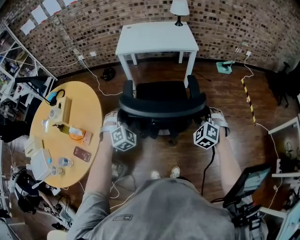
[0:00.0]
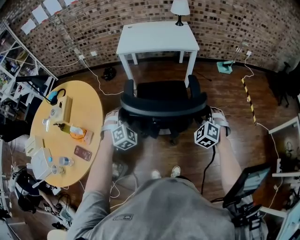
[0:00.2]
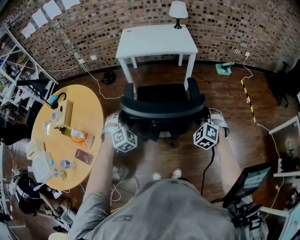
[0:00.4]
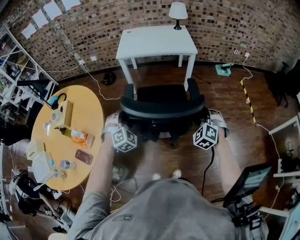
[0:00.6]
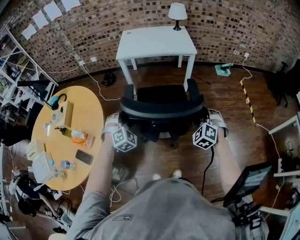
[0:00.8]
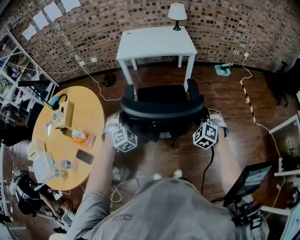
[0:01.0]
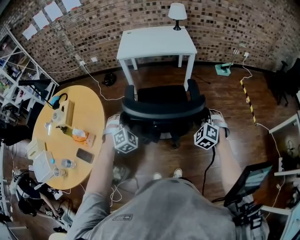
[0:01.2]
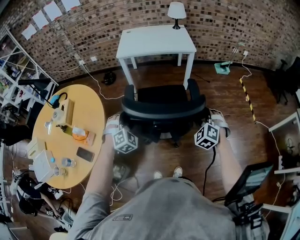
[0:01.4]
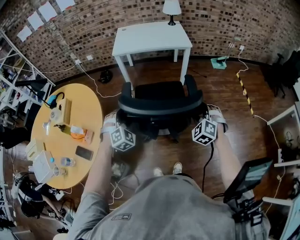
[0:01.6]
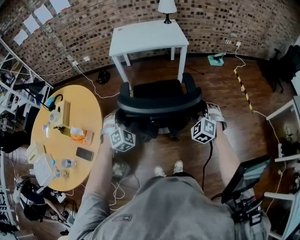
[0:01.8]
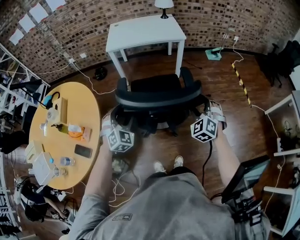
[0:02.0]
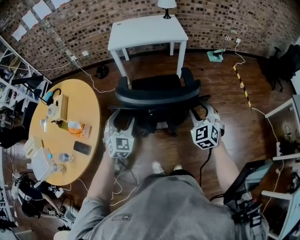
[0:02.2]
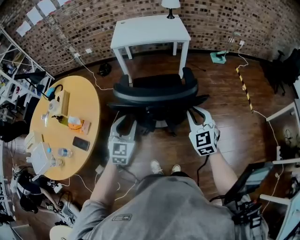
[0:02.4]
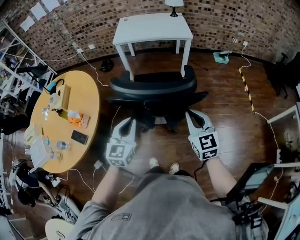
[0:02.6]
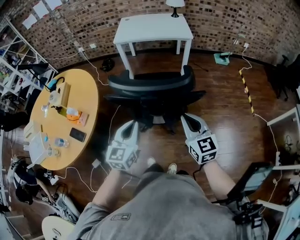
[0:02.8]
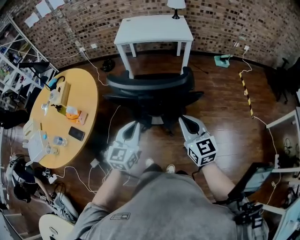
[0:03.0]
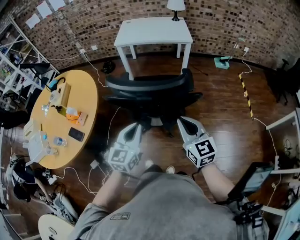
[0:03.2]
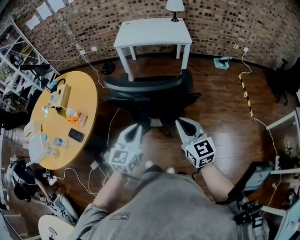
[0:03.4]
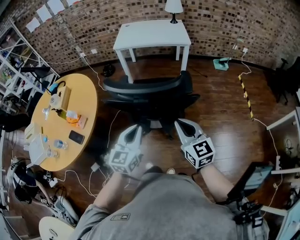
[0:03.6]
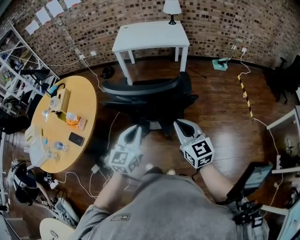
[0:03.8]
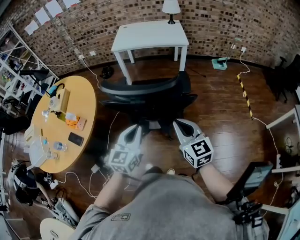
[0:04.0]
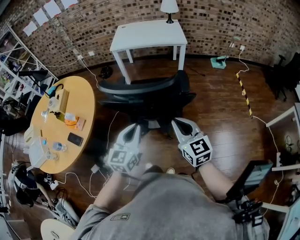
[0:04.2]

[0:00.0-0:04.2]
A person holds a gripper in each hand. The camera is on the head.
0:00.0 to 0:01.4: The grippers move only a little.
0:01.4 to 0:02.8: The right gripper goes roughly 15 cm backward and upward, rotates around the line of its fingers by about 50 degrees, clockwise from behind, and closes its fingers, while the left gripper travels backward and to the right by some 15 cm, rolls counterclockwise, seen from behind, by roughly 60 degrees, and closes up.
0:02.8 to 0:04.2: The grippers make only small movements.

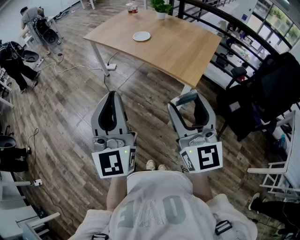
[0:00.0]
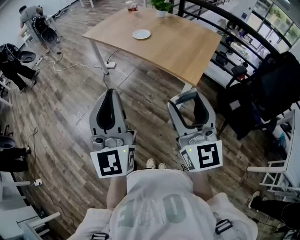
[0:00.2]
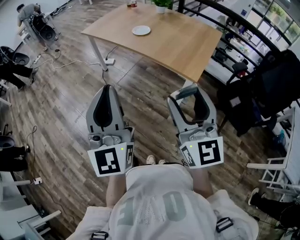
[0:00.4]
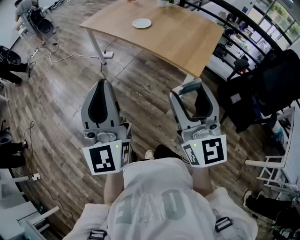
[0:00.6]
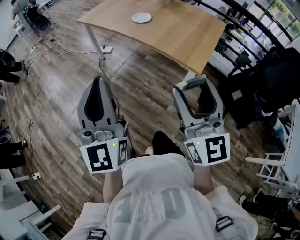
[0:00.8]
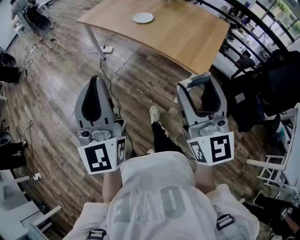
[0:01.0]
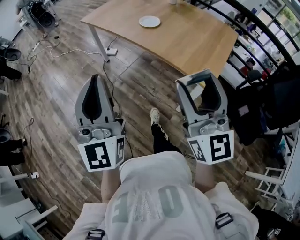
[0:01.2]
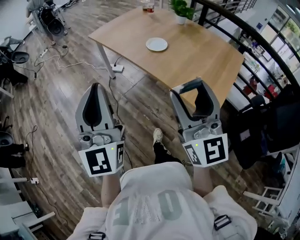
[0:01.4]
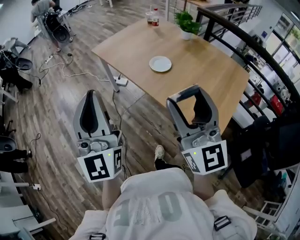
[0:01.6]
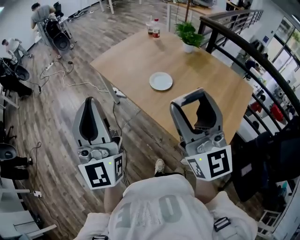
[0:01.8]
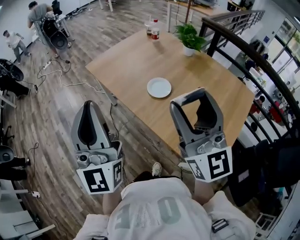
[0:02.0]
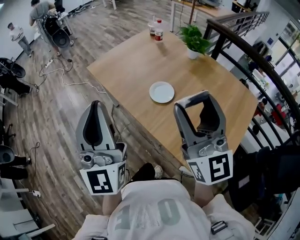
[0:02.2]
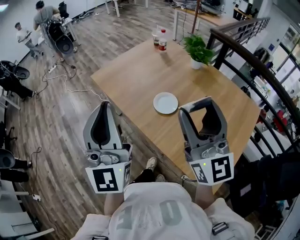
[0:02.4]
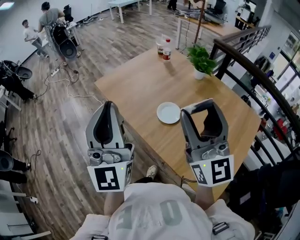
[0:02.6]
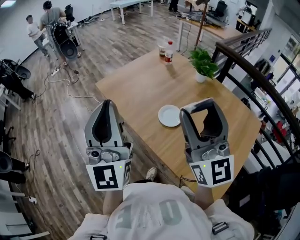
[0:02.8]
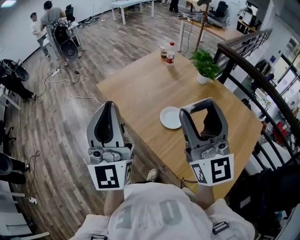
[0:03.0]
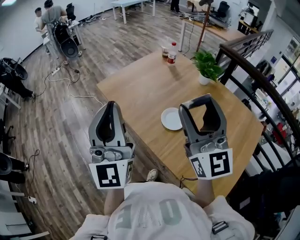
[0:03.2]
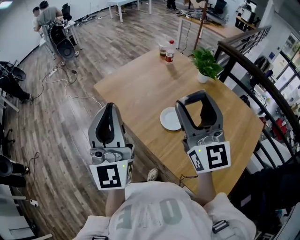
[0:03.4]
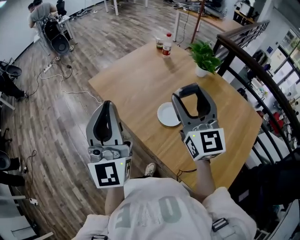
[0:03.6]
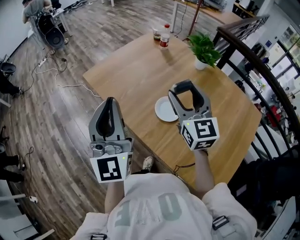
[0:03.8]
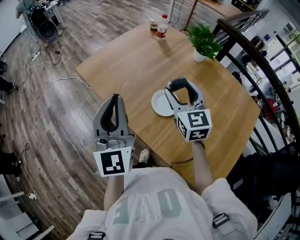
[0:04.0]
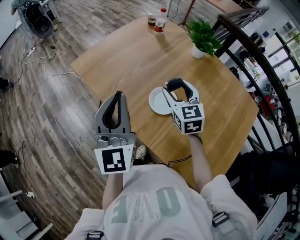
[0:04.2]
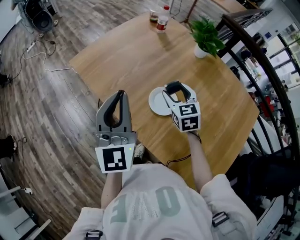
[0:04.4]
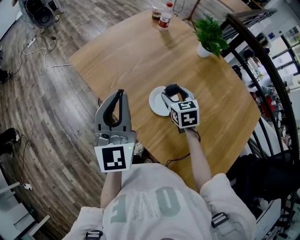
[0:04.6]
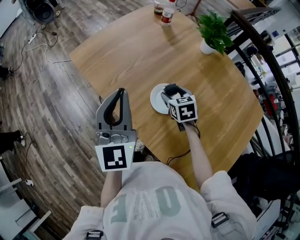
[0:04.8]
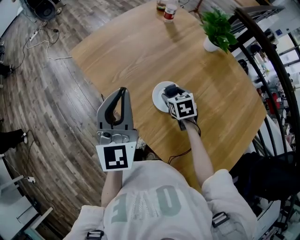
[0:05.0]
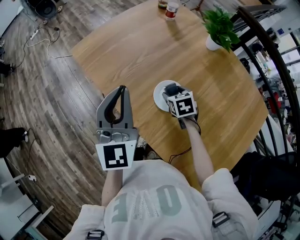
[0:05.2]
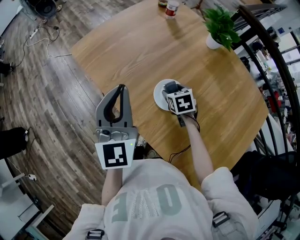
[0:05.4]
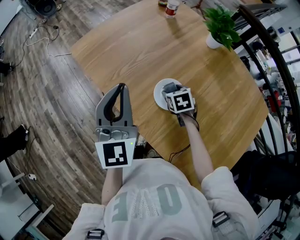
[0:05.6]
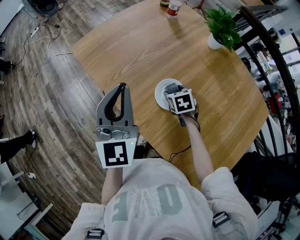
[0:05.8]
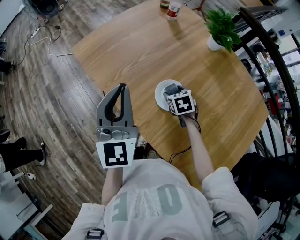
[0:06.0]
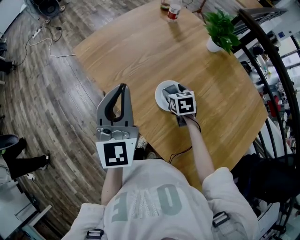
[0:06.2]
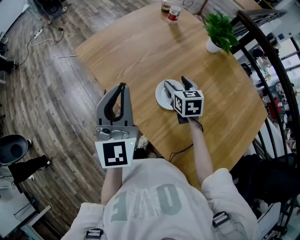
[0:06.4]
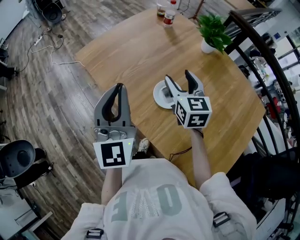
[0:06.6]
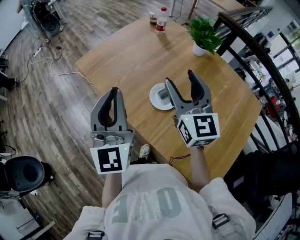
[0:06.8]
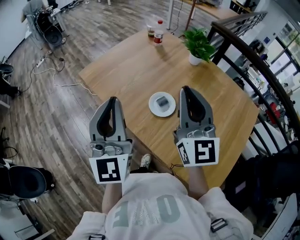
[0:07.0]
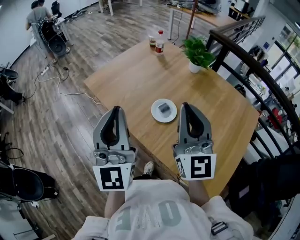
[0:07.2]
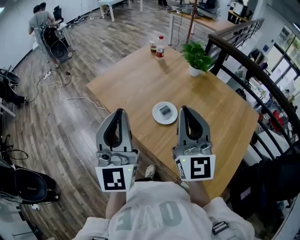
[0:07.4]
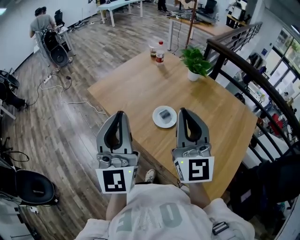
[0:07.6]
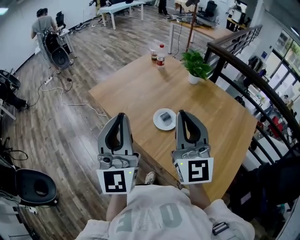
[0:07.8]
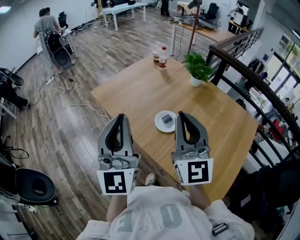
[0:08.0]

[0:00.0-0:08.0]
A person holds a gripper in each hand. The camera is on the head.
0:00.0 to 0:01.6: The two grippers go about 30 cm forward.
0:01.6 to 0:03.2: The two grippers go about 30 cm forward.
0:03.2 to 0:04.8: The right gripper goes approximately 40 cm downward and forward, and points its fingers about 70 degrees further downward, while the left gripper moves downward, forward and to the right, about 20 cm, and swivels roughly 20 degrees.
0:04.8 to 0:06.4: The grippers make only small movements.
0:06.4 to 0:08.0: The right gripper shifts roughly 40 cm upward and backward, angles its fingers upward, by about 50 degrees, and closes up; the left gripper heads backward and upward, covering approximately 20 cm.

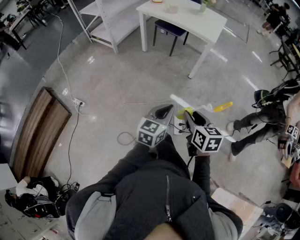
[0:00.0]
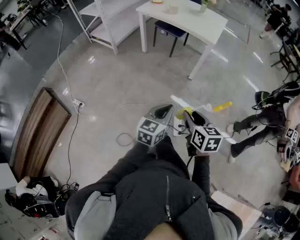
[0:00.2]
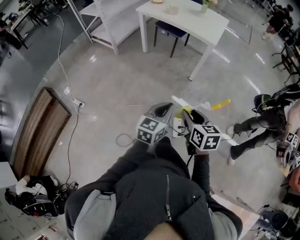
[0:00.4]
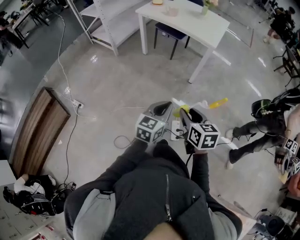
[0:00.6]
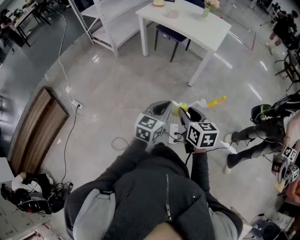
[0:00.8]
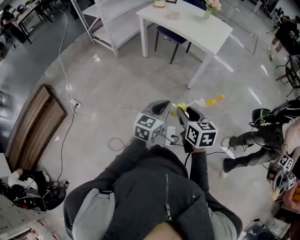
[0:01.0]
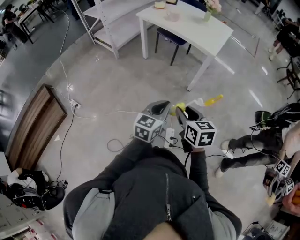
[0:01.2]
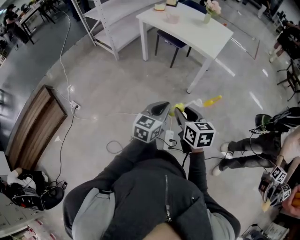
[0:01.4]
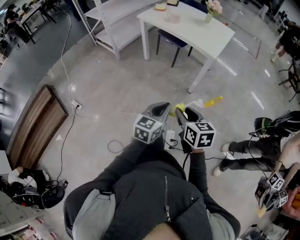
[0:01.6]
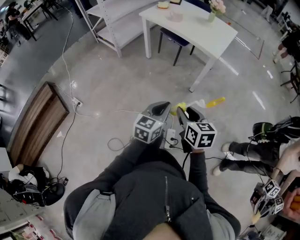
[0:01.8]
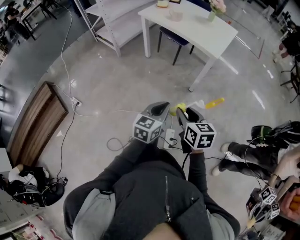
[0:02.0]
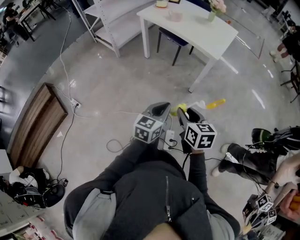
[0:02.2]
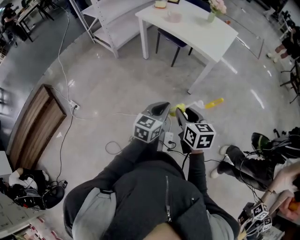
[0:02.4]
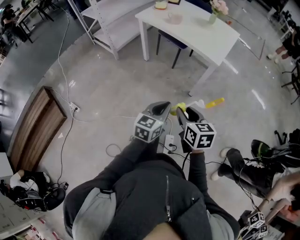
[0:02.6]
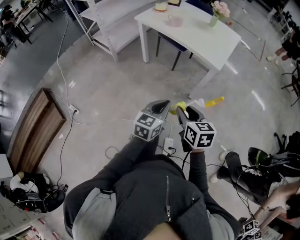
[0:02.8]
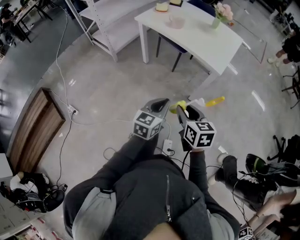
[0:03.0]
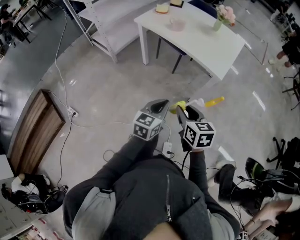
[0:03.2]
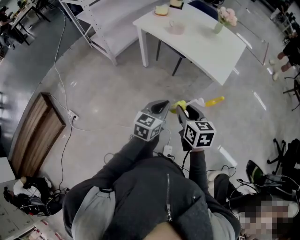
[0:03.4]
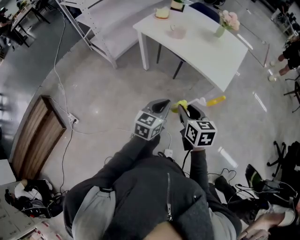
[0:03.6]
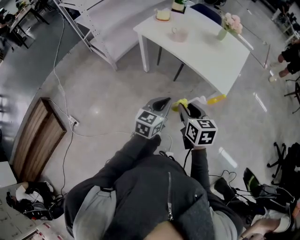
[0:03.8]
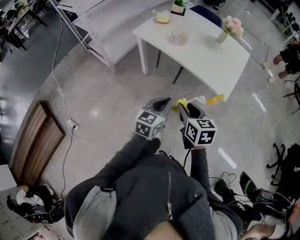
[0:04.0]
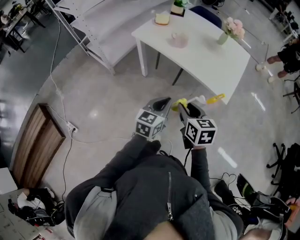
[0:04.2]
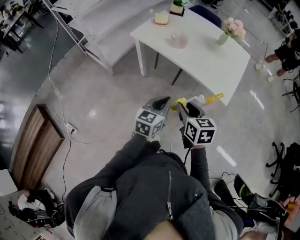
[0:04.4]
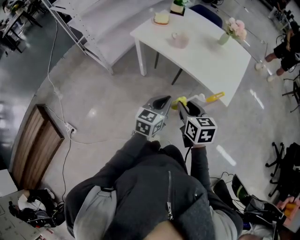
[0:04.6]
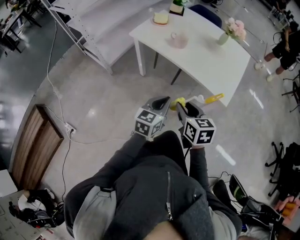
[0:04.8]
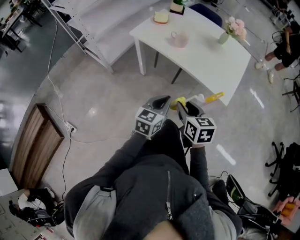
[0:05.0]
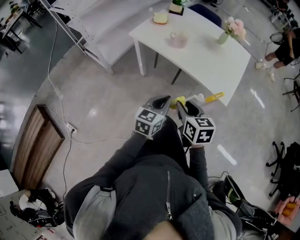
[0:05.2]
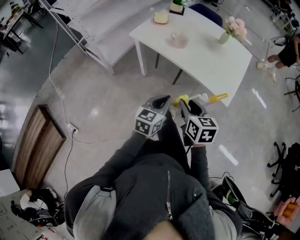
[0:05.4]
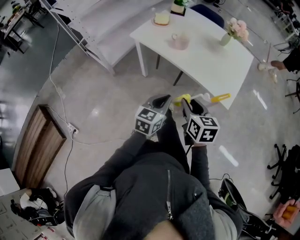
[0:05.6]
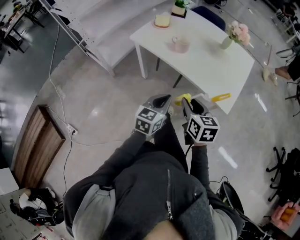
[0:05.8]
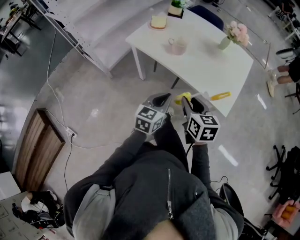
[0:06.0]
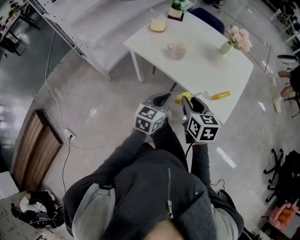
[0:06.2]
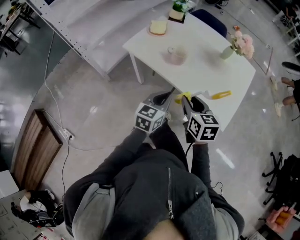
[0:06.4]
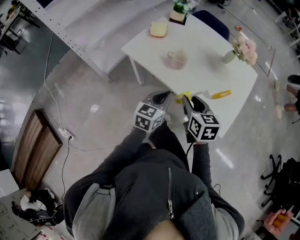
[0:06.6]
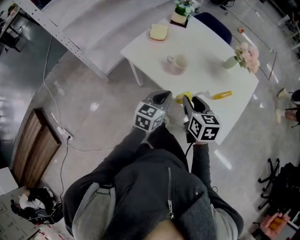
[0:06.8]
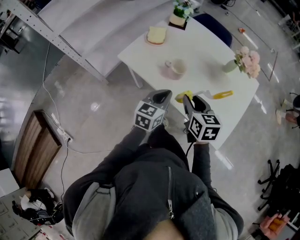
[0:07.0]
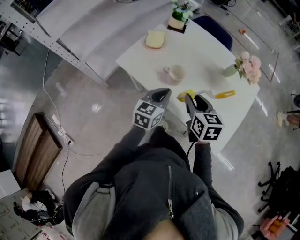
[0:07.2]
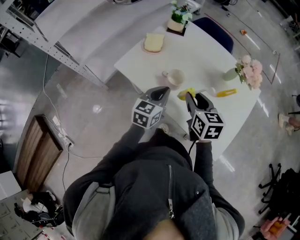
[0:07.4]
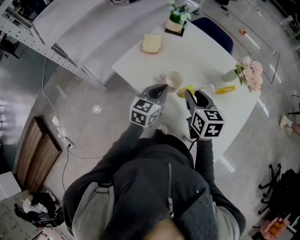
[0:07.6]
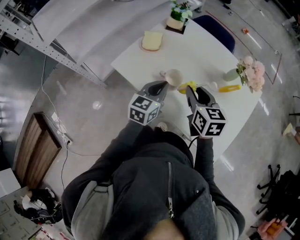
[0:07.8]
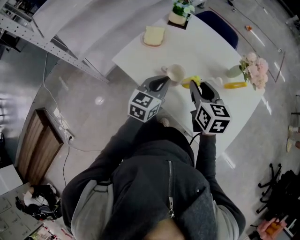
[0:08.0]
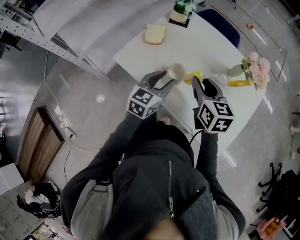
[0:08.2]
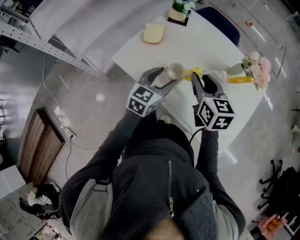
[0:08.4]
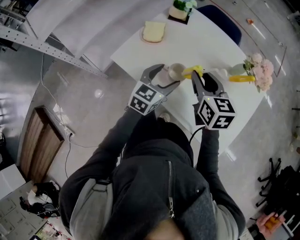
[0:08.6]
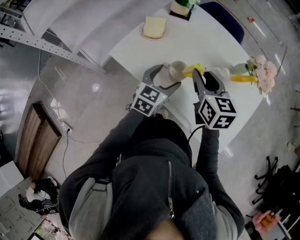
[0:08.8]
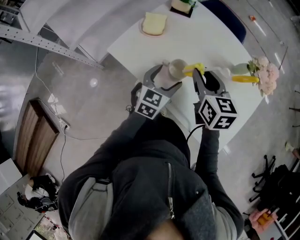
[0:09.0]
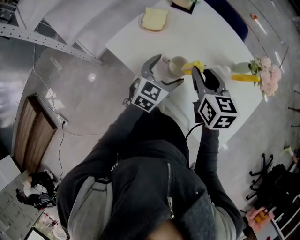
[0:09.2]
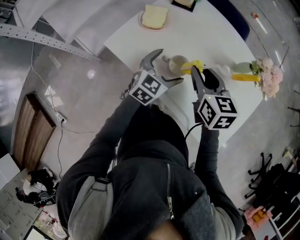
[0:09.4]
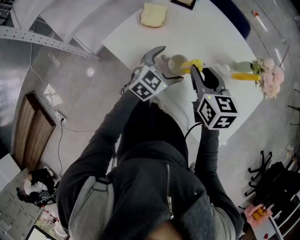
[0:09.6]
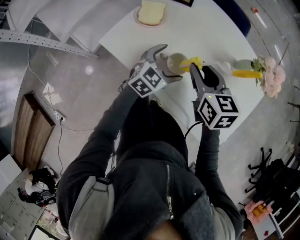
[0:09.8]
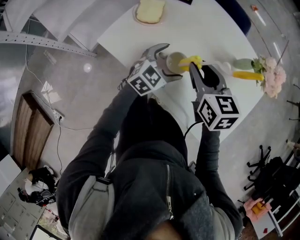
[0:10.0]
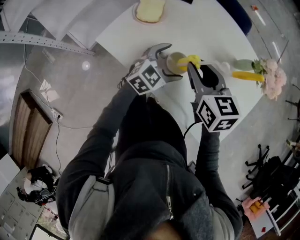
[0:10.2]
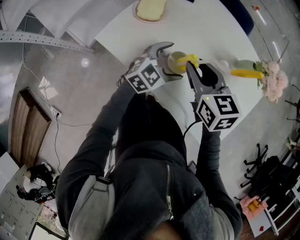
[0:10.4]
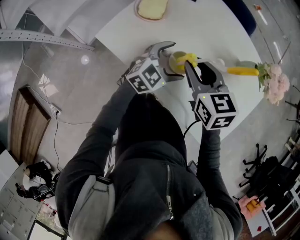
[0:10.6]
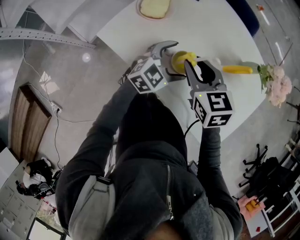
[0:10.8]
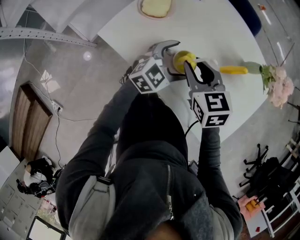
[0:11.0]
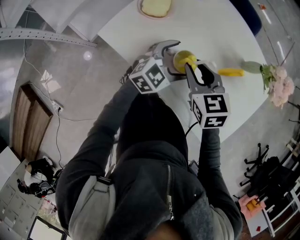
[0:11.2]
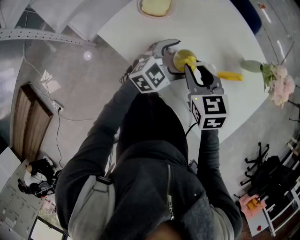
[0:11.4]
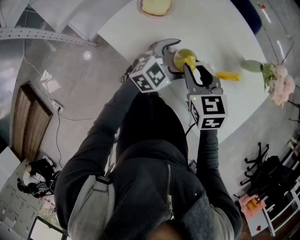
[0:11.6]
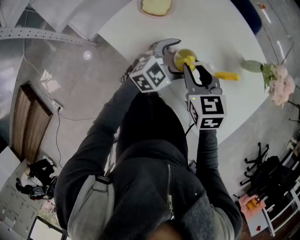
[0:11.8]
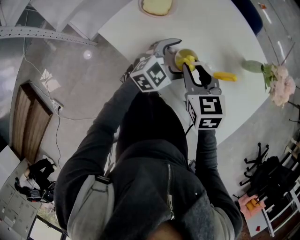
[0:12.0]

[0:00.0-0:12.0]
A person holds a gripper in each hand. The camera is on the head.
0:00.0 to 0:01.6: Both grippers move forward and to the right, roughly 15 cm.
0:01.6 to 0:03.0: The grippers both shift forward by approximately 20 cm.
0:03.0 to 0:04.4: The two grippers go about 25 cm forward.
0:04.4 to 0:06.0: Both grippers move forward, some 10 cm.
0:06.0 to 0:07.6: The grippers both shift forward by approximately 30 cm.
0:07.6 to 0:09.0: The right gripper heads forward, covering about 5 cm. The left gripper opens up.
0:09.0 to 0:10.4: The left gripper changes place by roughly 5 cm, and changes its angle by approximately 30 degrees.
0:10.4 to 0:12.0: The right gripper moves approximately 5 cm.
